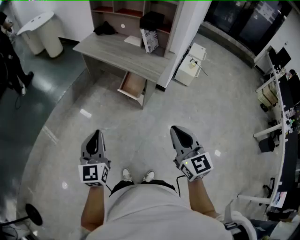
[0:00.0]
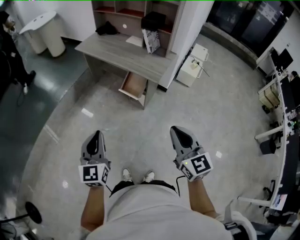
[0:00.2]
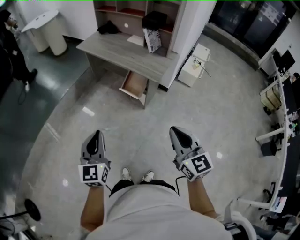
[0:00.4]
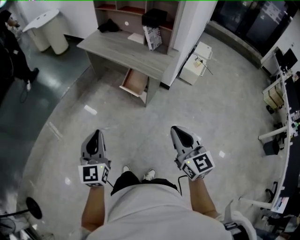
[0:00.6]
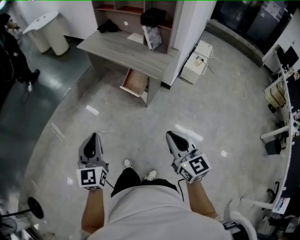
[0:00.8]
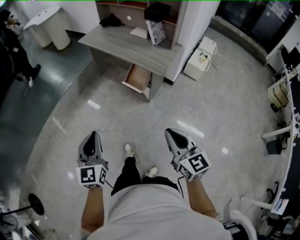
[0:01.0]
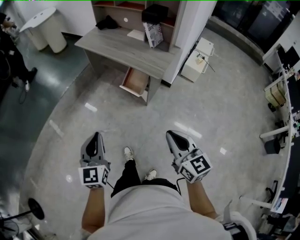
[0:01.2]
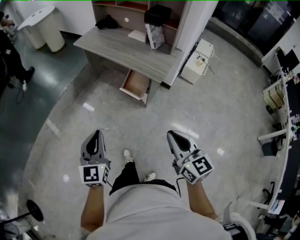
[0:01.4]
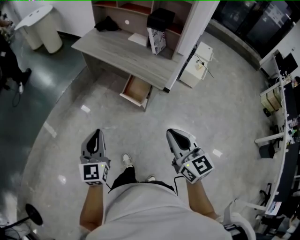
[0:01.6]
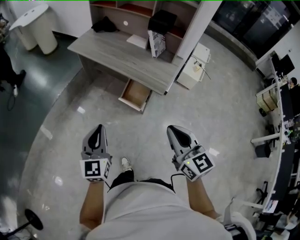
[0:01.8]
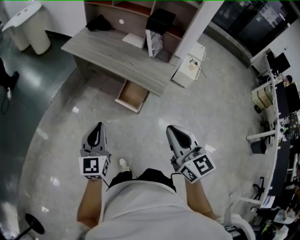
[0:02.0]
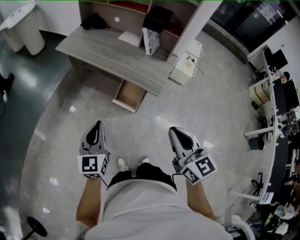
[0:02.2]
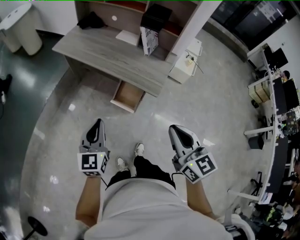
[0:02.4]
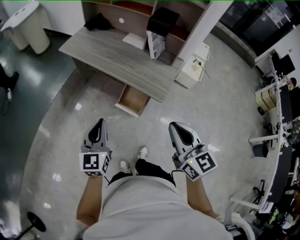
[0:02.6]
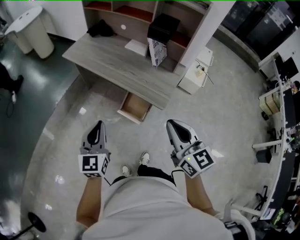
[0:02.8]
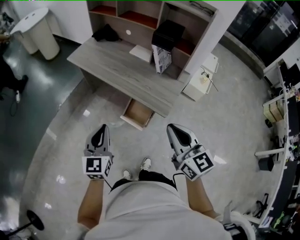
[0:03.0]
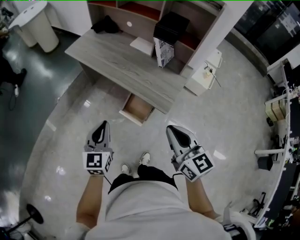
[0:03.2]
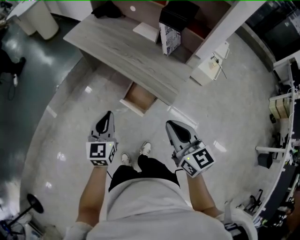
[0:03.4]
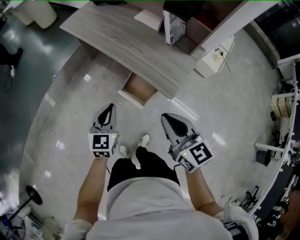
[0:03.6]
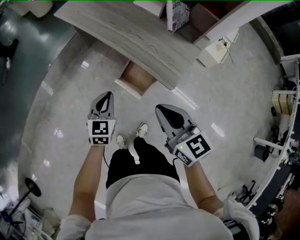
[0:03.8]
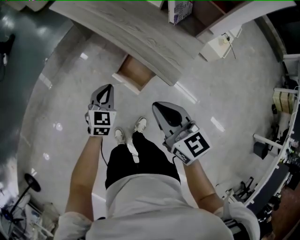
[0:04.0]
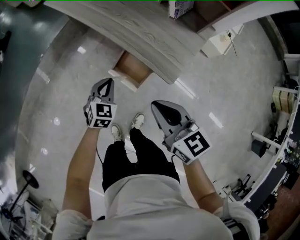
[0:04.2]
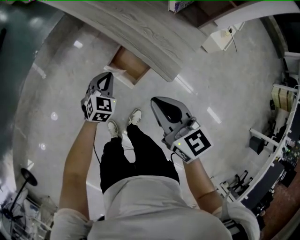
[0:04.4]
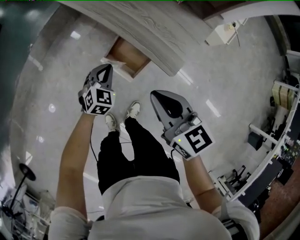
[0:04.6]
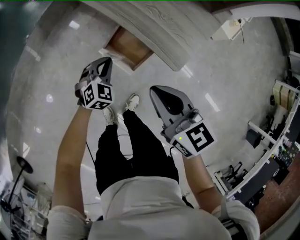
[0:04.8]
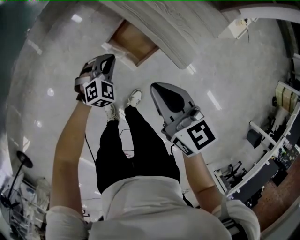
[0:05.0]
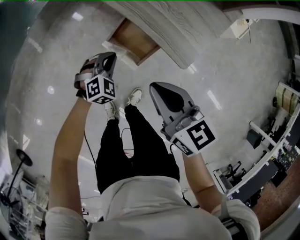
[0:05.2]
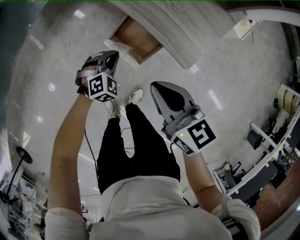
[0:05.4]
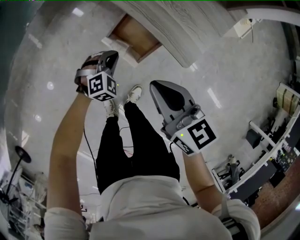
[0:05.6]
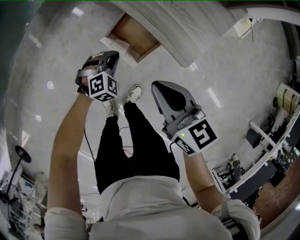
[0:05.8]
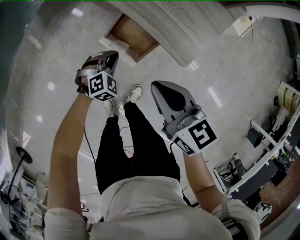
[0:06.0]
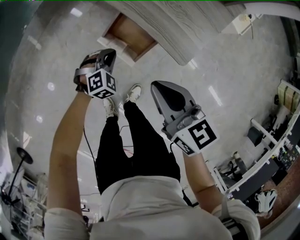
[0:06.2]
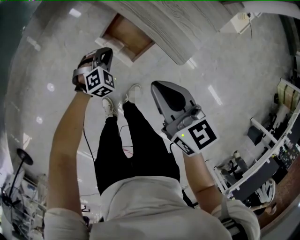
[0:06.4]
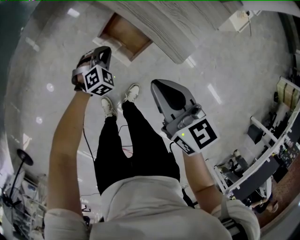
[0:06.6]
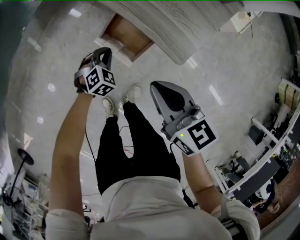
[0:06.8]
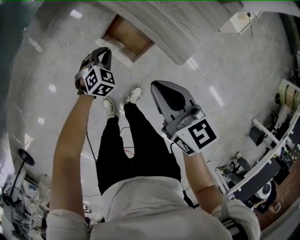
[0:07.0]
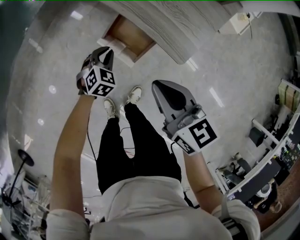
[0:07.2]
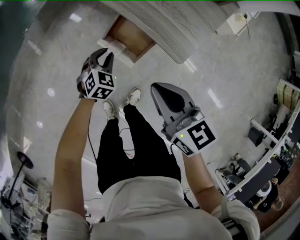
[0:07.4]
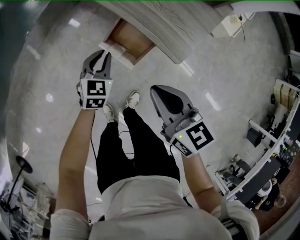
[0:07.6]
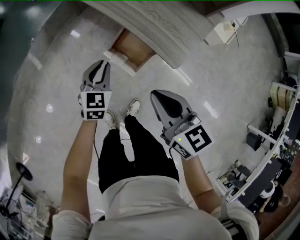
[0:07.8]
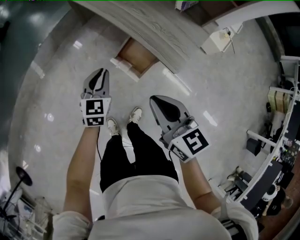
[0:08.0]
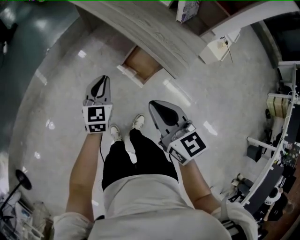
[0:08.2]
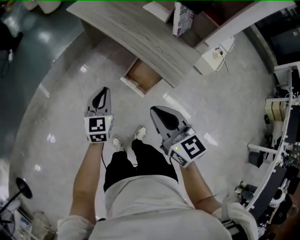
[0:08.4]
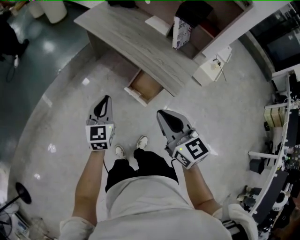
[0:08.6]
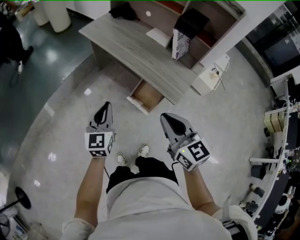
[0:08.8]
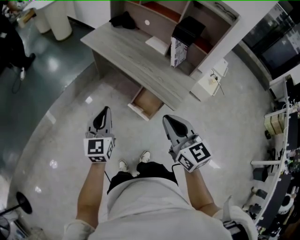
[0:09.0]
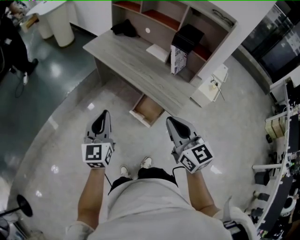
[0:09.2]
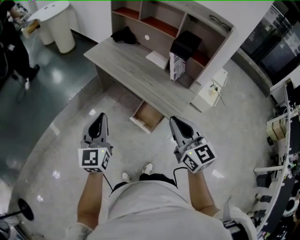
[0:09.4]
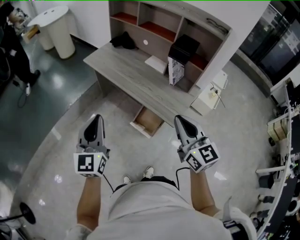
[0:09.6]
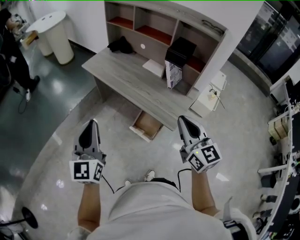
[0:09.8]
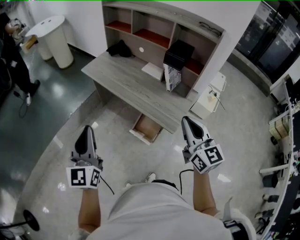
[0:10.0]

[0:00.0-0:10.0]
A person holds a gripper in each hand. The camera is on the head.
0:00.0 to 0:01.4: The grippers both shift forward by about 5 cm.
0:01.4 to 0:02.8: Both grippers move forward, roughly 30 cm.
0:02.8 to 0:04.2: Both grippers move downward and forward, roughly 30 cm. The left gripper swivels some 30 degrees. The right gripper changes its angle by roughly 30 degrees.
0:04.2 to 0:05.8: The grippers both shift downward by about 15 cm. The left gripper rotates approximately 30 degrees.
0:05.8 to 0:07.2: The left gripper changes its angle by roughly 20 degrees.
0:07.2 to 0:08.6: The right gripper heads upward and to the left, covering roughly 25 cm. The left gripper moves upward and to the left, about 40 cm, and tilts its fingers approximately 40 degrees upward.
0:08.6 to 0:10.0: The left gripper moves upward, some 25 cm, and turns by approximately 20 degrees; the right gripper travels upward and to the right by roughly 20 cm, and swivels roughly 20 degrees.

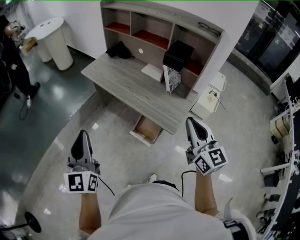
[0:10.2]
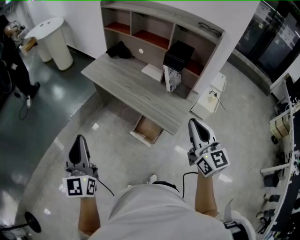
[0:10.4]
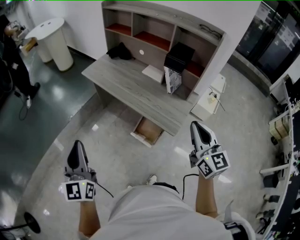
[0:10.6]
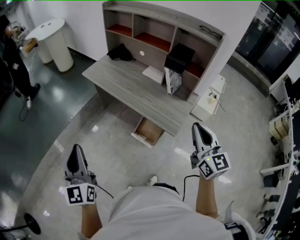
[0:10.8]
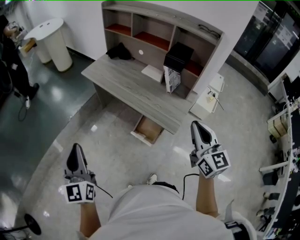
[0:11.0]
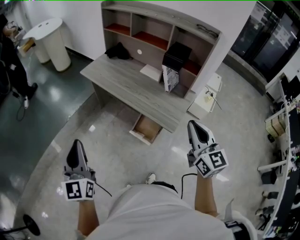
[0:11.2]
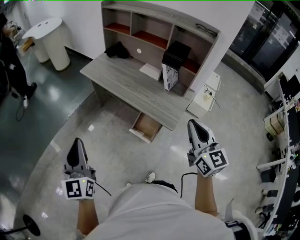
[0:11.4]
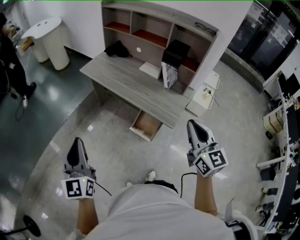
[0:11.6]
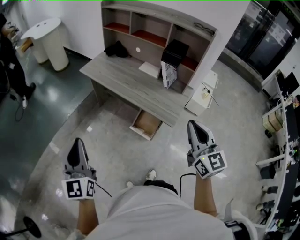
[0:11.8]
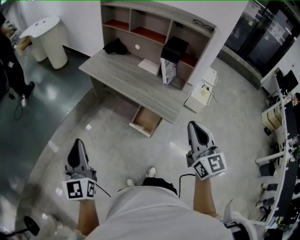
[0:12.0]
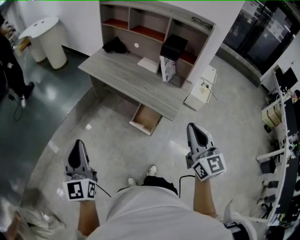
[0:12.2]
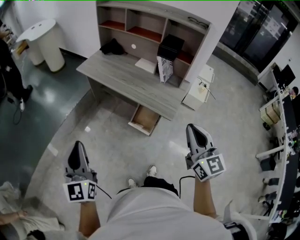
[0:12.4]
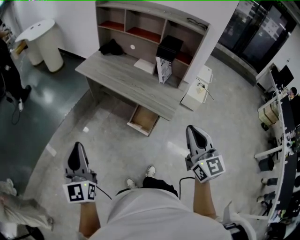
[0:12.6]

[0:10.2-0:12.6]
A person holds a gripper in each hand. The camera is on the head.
0:10.2 to 0:11.4: The right gripper shifts by about 5 cm, while the left gripper moves to the left, roughly 5 cm.
0:11.4 to 0:12.6: The right gripper heads backward, covering approximately 10 cm; the left gripper heads backward, covering roughly 5 cm.

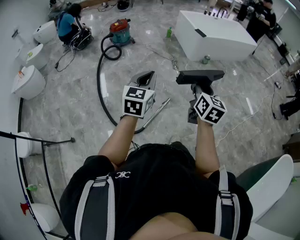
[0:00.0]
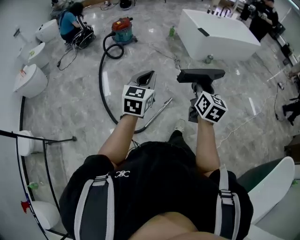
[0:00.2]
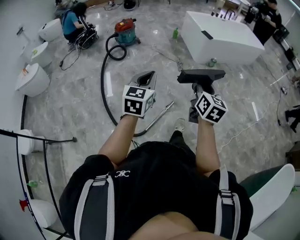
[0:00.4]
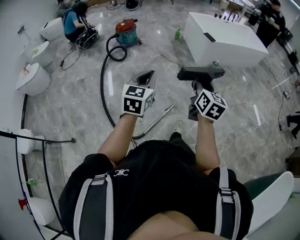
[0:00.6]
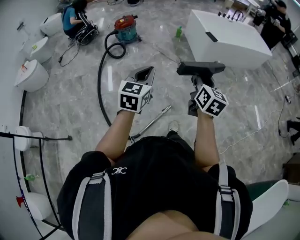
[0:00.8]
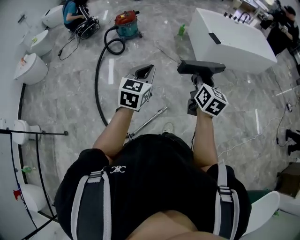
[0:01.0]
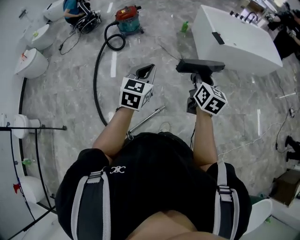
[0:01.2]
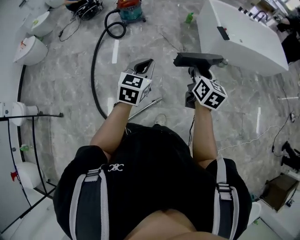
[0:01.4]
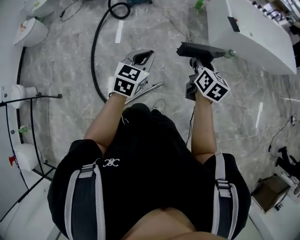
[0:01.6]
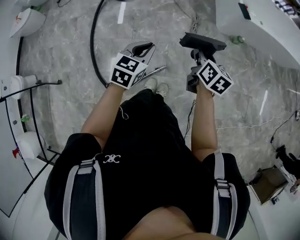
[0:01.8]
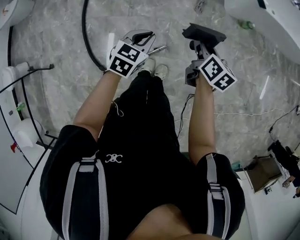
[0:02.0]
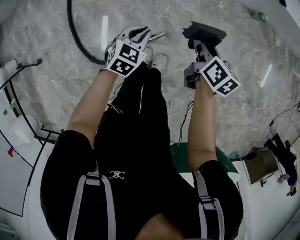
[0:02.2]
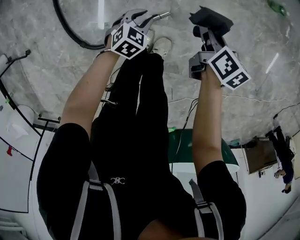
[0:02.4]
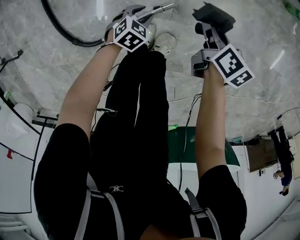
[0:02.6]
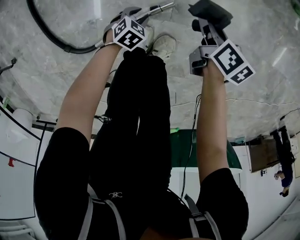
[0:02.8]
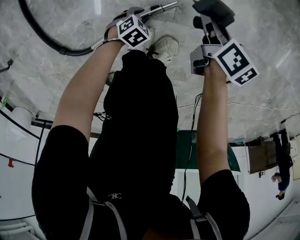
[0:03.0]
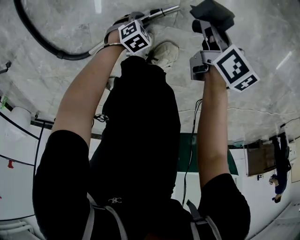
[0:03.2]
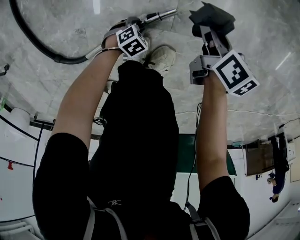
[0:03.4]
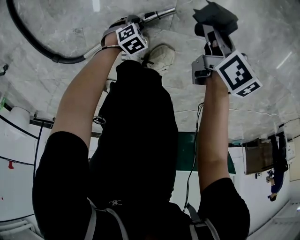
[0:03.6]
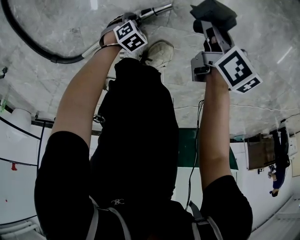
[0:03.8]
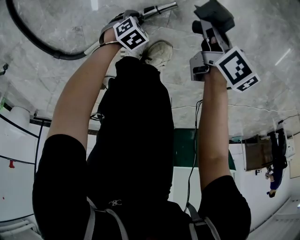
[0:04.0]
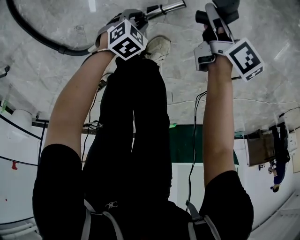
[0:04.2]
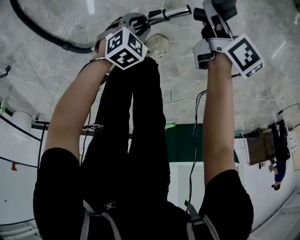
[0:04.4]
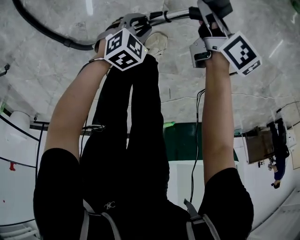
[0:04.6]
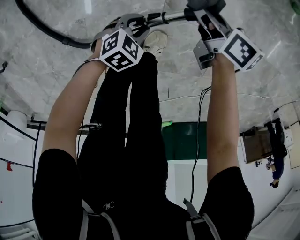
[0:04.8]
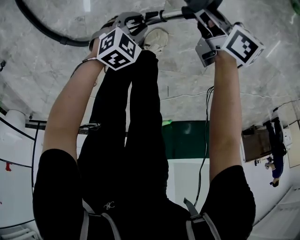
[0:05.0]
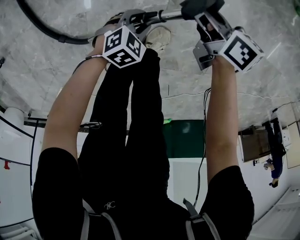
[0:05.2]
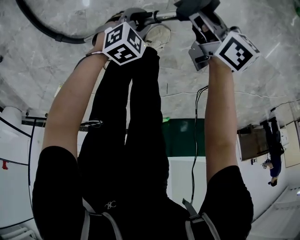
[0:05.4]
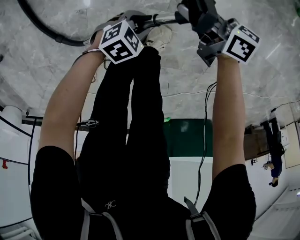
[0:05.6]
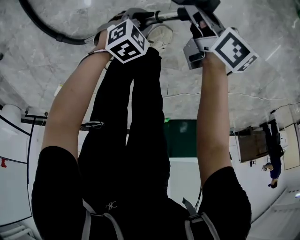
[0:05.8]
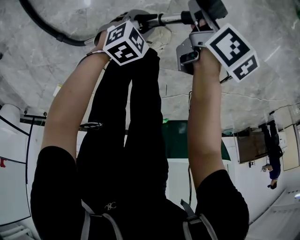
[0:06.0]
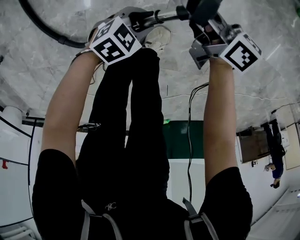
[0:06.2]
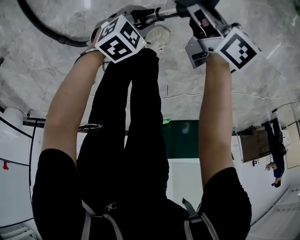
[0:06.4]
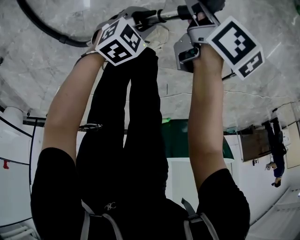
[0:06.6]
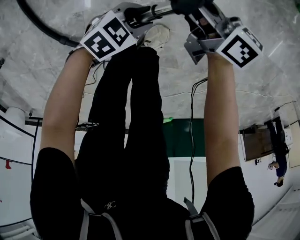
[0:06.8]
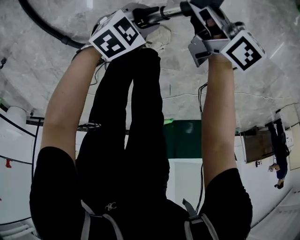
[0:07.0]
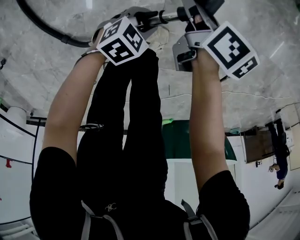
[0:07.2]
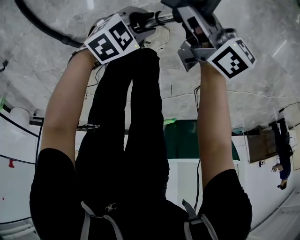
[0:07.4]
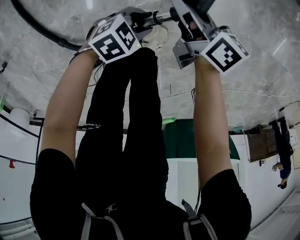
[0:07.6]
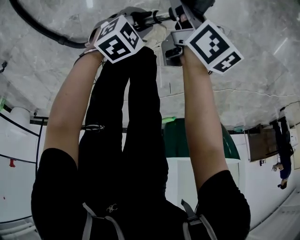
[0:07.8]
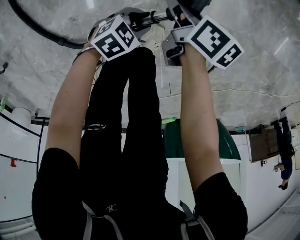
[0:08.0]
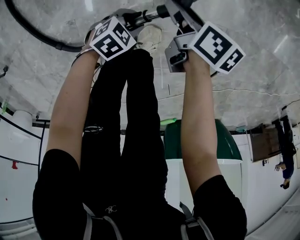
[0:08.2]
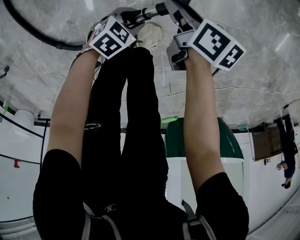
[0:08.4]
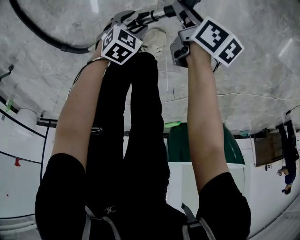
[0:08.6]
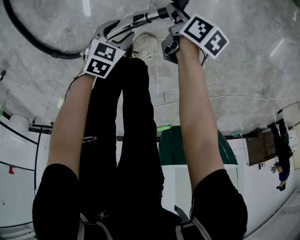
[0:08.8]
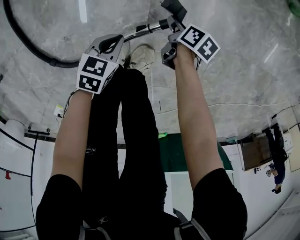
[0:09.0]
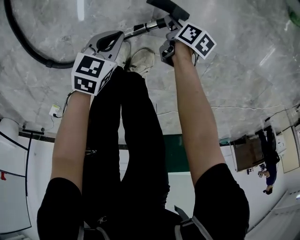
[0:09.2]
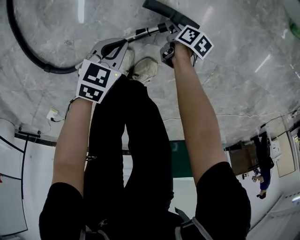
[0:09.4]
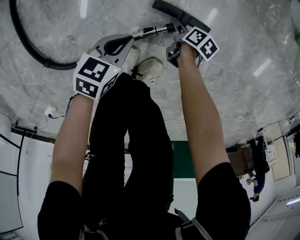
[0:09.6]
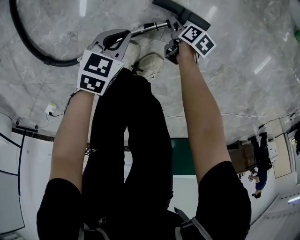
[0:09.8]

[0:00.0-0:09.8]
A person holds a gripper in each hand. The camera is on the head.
0:00.0 to 0:01.4: The grippers both shift forward by approximately 40 cm.
0:01.4 to 0:02.8: Both grippers travel together downward, about 80 cm. The left gripper tips its fingers downward by approximately 40 degrees, and opens its fingers, while the right gripper changes its angle by about 40 degrees.
0:02.8 to 0:04.2: The right gripper is displaced downward by about 5 cm. The left gripper moves approximately 20 cm downward and comes back.
0:04.2 to 0:05.6: The left gripper shifts approximately 10 cm upward; the right gripper changes place by some 15 cm, and turns by about 50 degrees.
0:05.6 to 0:07.0: The left gripper ends up roughly 5 cm from where it was; the right gripper rotates some 20 degrees.
0:07.0 to 0:08.4: The left gripper moves downward, some 5 cm, while the right gripper ends up about 10 cm from where it was, and turns by about 30 degrees.
0:08.4 to 0:09.8: The right gripper is displaced downward by approximately 25 cm, and changes its angle by roughly 20 degrees. The left gripper ends up approximately 15 cm from where it was, turns by roughly 40 degrees, and closes up.

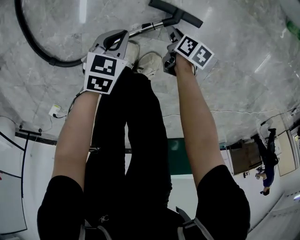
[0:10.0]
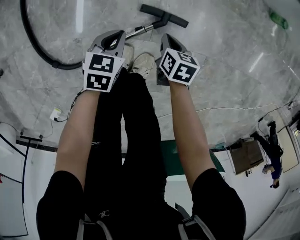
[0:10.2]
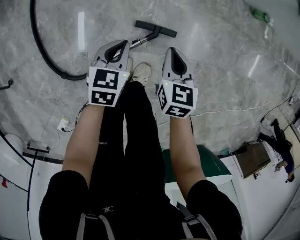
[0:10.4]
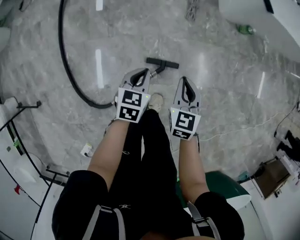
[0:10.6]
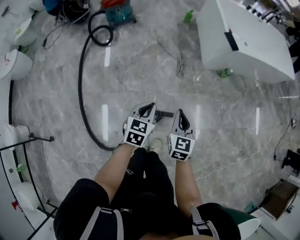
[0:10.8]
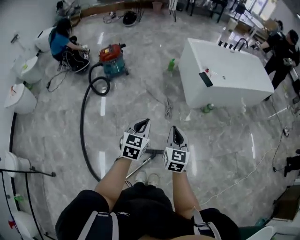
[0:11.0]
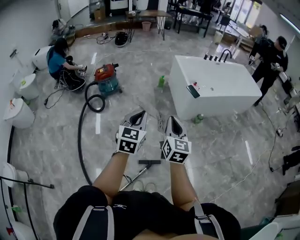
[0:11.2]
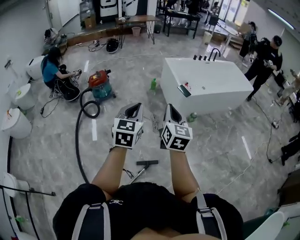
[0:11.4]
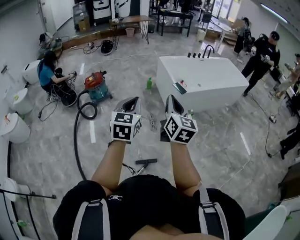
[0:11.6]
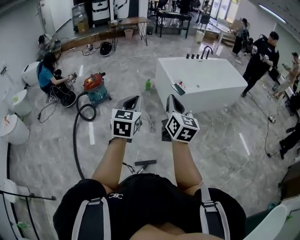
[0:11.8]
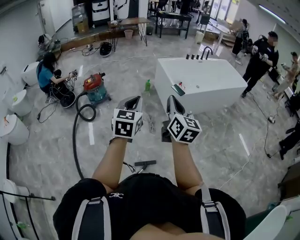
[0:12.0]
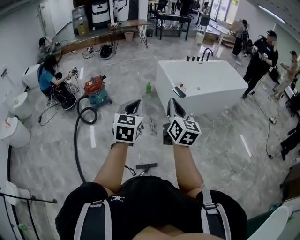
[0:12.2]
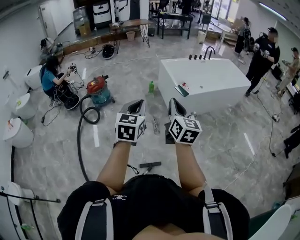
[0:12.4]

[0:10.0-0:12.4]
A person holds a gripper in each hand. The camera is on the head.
0:10.0 to 0:11.2: The grippers both shift upward by about 90 cm. The right gripper tips its fingers upward by some 60 degrees, and closes up, while the left gripper angles its fingers upward, by about 40 degrees.
0:11.2 to 0:12.4: The two grippers go roughly 10 cm upward and to the right.
